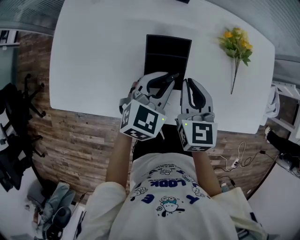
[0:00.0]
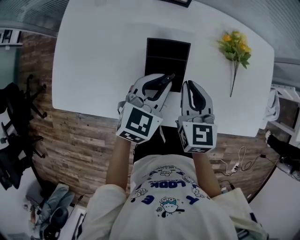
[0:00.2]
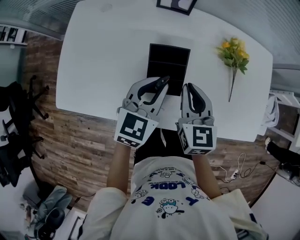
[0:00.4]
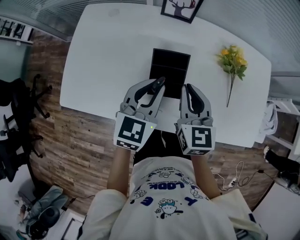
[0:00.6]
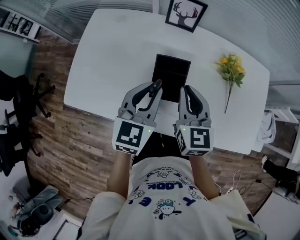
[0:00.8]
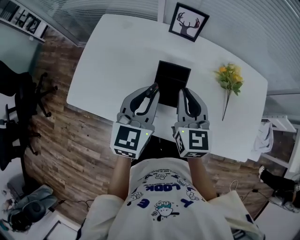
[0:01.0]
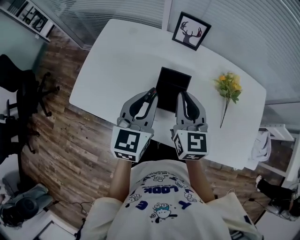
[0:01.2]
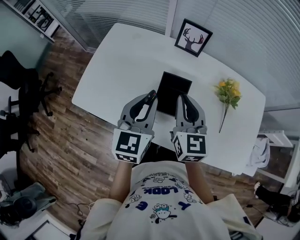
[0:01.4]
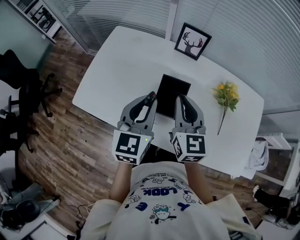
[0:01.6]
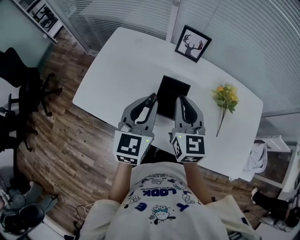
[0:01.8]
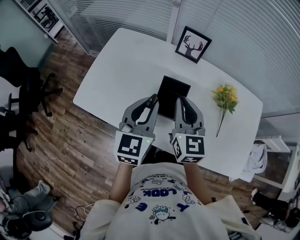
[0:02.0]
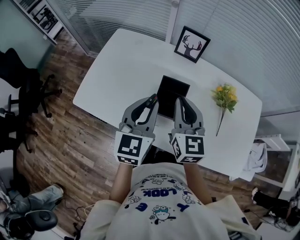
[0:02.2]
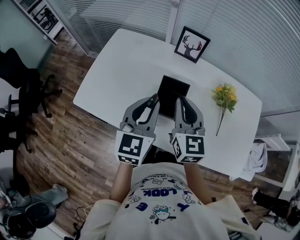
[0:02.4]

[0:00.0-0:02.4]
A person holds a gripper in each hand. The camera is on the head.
0.0 to 1.2 s: The right gripper moves upward, some 15 cm; the left gripper moves upward and to the left, about 15 cm, and rotates about 40 degrees.
1.2 to 2.4 s: The grippers stay close to where they were, moving slightly.

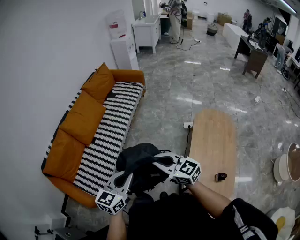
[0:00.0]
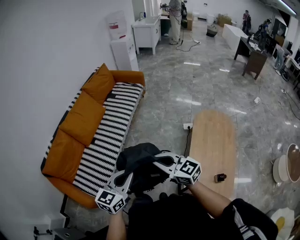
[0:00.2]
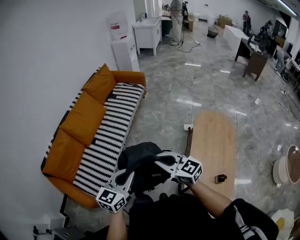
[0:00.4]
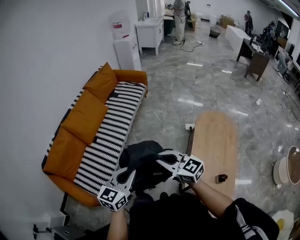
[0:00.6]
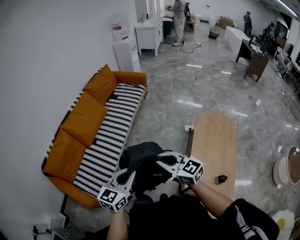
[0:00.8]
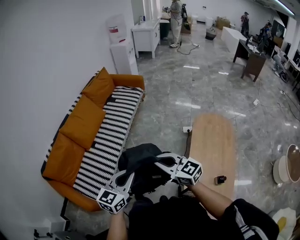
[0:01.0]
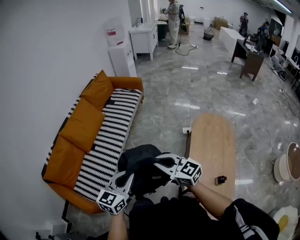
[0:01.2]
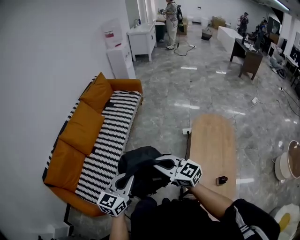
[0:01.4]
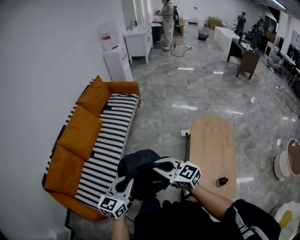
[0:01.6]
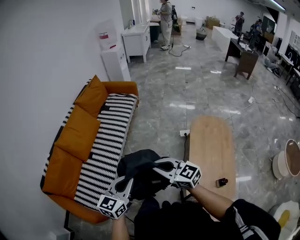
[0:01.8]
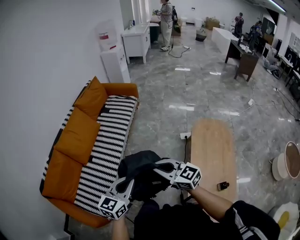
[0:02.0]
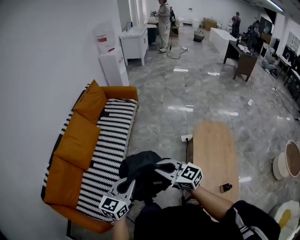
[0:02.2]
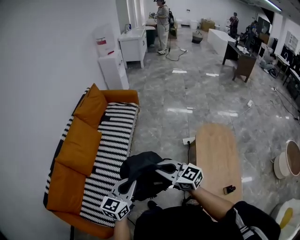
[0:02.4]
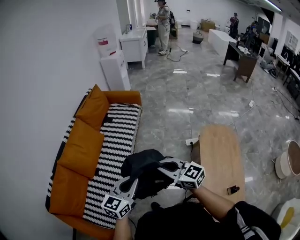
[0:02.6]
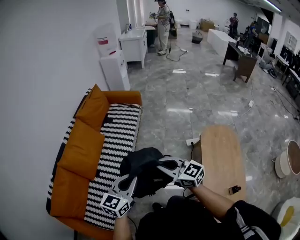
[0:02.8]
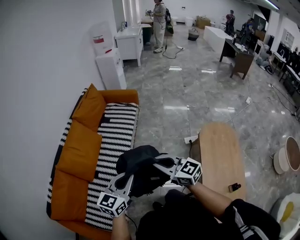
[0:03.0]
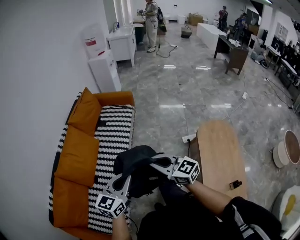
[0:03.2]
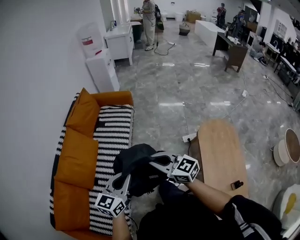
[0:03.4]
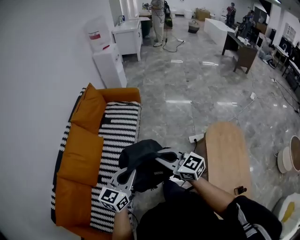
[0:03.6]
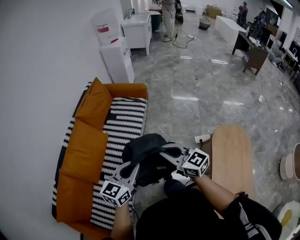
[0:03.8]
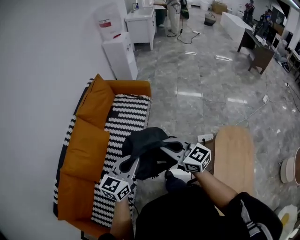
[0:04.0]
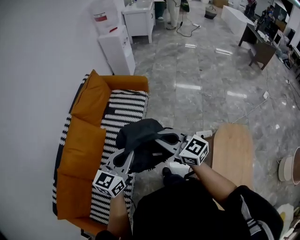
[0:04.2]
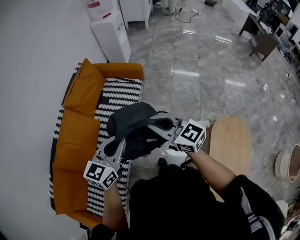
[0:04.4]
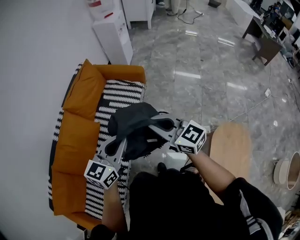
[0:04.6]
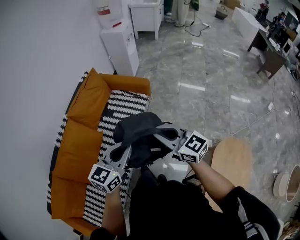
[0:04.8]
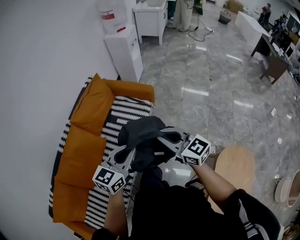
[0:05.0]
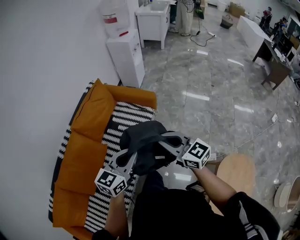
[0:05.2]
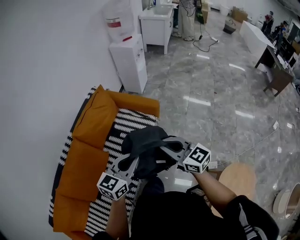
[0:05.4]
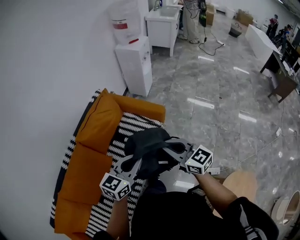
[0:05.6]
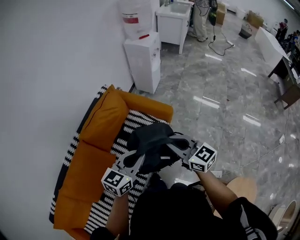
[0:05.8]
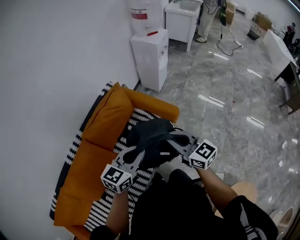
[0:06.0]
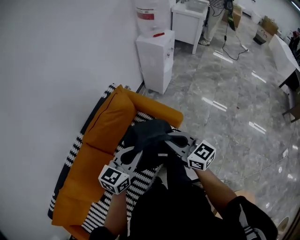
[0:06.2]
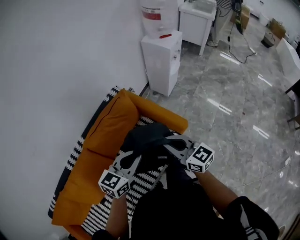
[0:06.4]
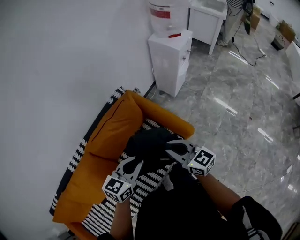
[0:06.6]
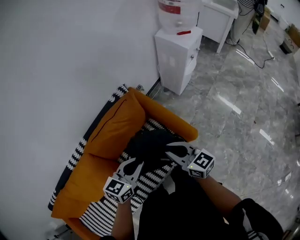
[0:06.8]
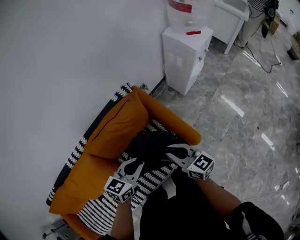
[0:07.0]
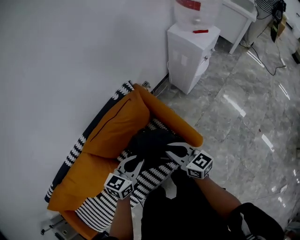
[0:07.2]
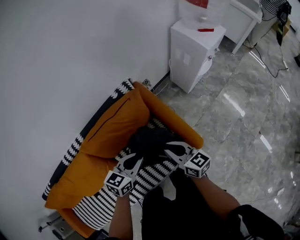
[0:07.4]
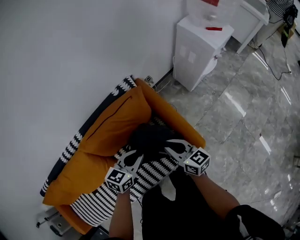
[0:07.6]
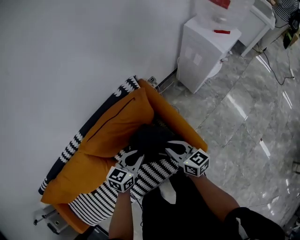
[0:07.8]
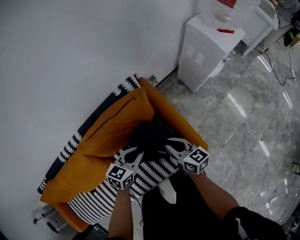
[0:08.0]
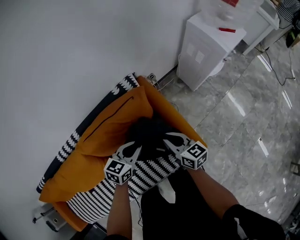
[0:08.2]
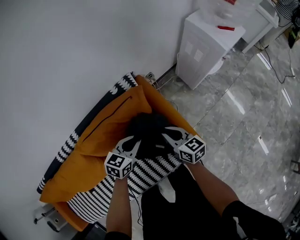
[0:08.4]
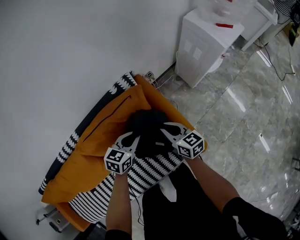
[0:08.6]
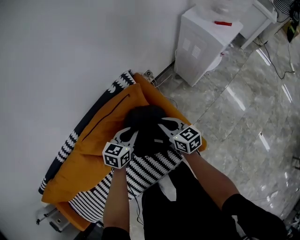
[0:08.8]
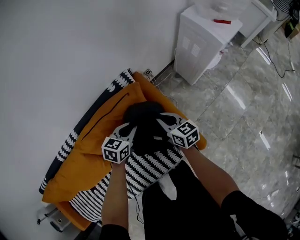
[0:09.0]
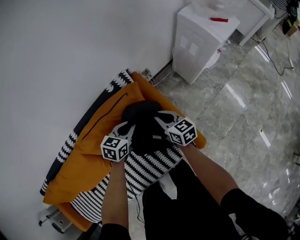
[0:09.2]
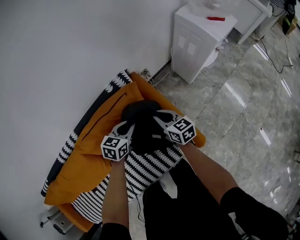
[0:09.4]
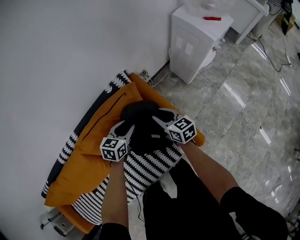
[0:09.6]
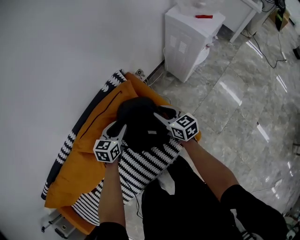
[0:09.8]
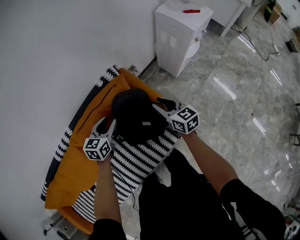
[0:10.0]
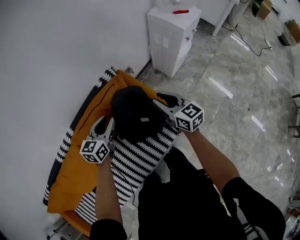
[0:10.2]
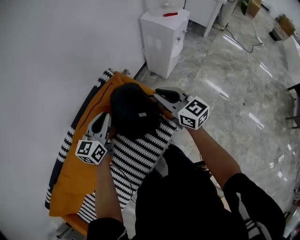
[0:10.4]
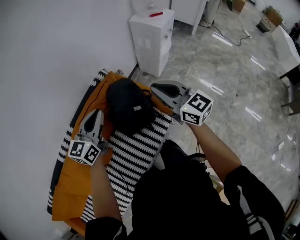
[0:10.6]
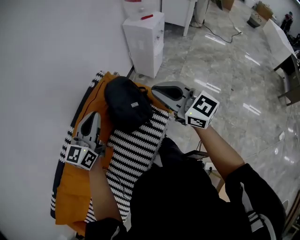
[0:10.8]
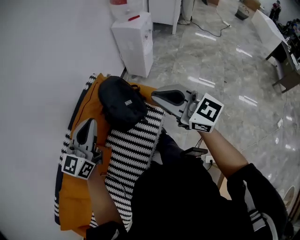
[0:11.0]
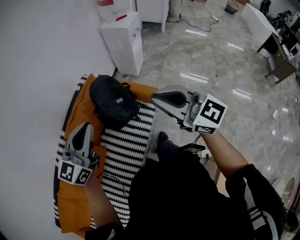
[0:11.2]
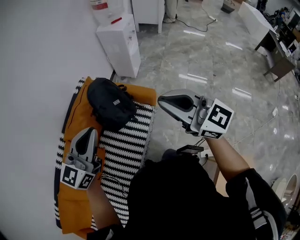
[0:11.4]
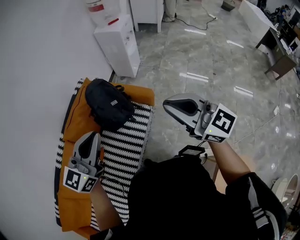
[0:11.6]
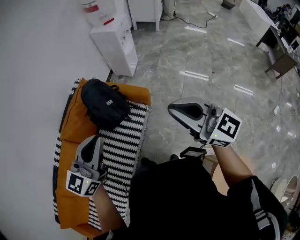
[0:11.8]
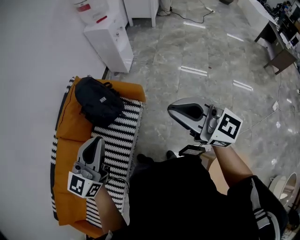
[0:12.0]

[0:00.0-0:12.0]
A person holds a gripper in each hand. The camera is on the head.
0.0 to 1.6 s: The grippers make only small movements.
1.6 to 3.0 s: The grippers both shift forward by some 20 cm.
3.0 to 4.4 s: The grippers both shift forward by some 30 cm.
4.4 to 6.0 s: The two grippers go some 35 cm forward.
6.0 to 7.6 s: The grippers both shift forward and downward by roughly 35 cm. The right gripper swivels roughly 30 degrees. The left gripper rotates approximately 30 degrees.
7.6 to 9.0 s: The two grippers go roughly 15 cm forward and downward.
9.0 to 10.4 s: Both grippers travel together upward and backward, some 25 cm. The left gripper turns by about 30 degrees, and opens and closes again. Meanwhile the right gripper turns by roughly 30 degrees.
10.4 to 12.0 s: The two grippers travel together, backward and to the right, approximately 40 cm. The two grippers go about 15 cm upward. The left gripper turns by roughly 30 degrees.

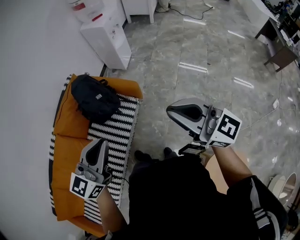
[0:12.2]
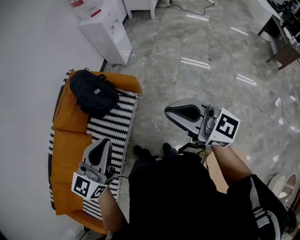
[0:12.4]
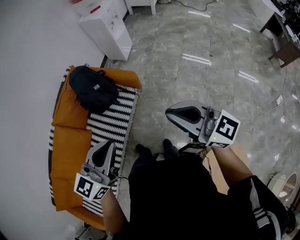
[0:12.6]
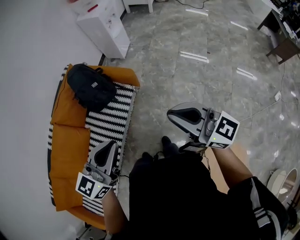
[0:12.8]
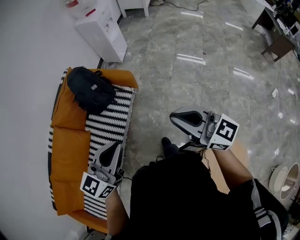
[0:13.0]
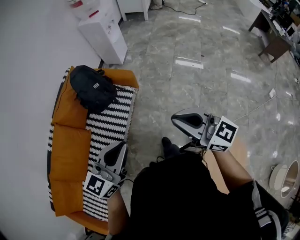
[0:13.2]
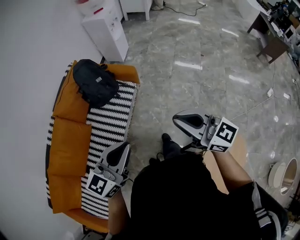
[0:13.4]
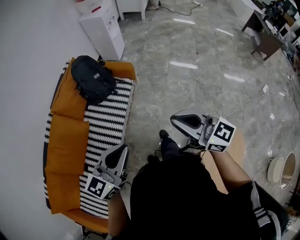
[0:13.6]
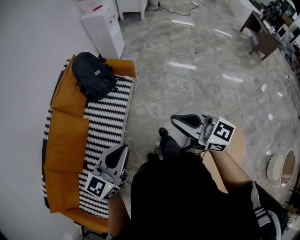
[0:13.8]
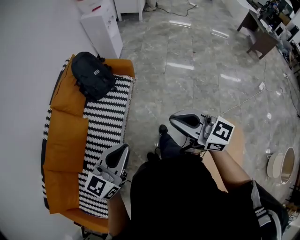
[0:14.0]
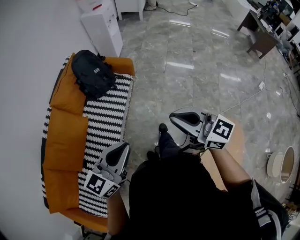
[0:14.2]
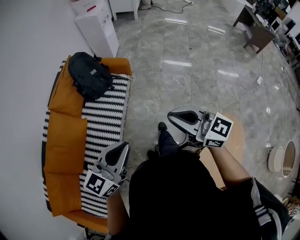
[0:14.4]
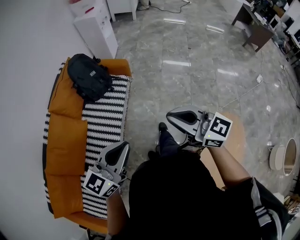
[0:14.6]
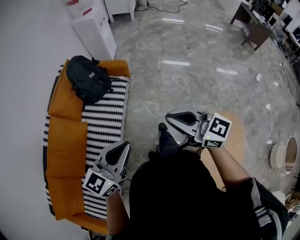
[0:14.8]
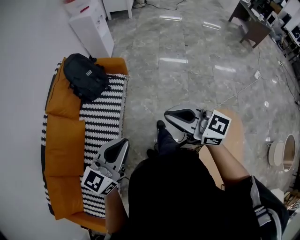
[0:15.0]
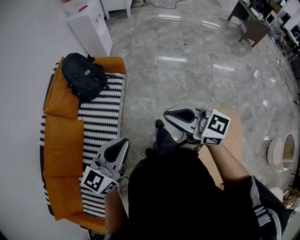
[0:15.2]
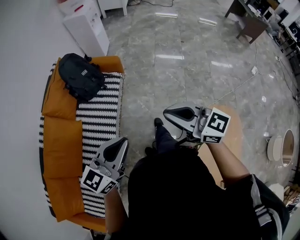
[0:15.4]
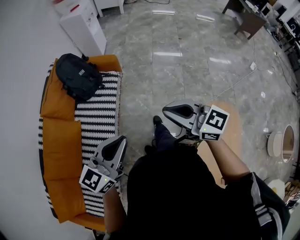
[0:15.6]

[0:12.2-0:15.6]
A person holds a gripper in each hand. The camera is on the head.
12.2 to 13.8 s: The grippers both shift backward by roughly 25 cm.
13.8 to 15.6 s: The grippers stay close to where they were, moving slightly.

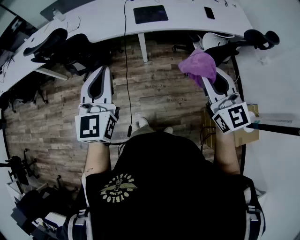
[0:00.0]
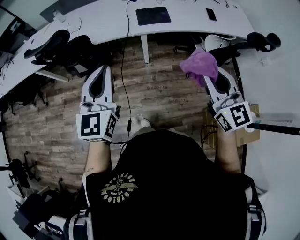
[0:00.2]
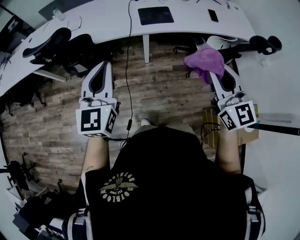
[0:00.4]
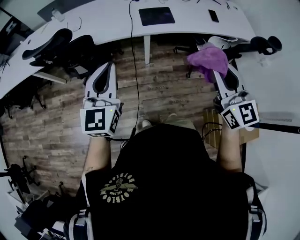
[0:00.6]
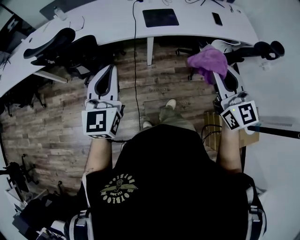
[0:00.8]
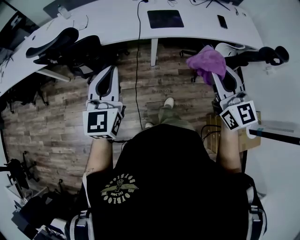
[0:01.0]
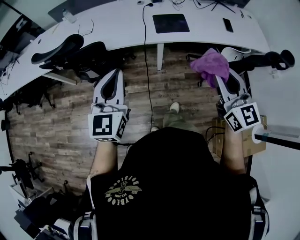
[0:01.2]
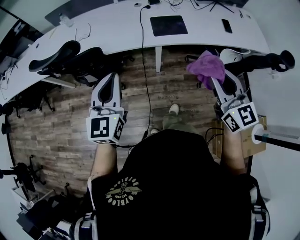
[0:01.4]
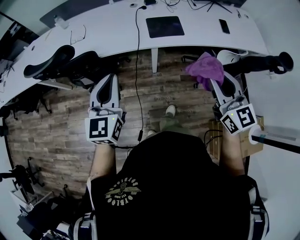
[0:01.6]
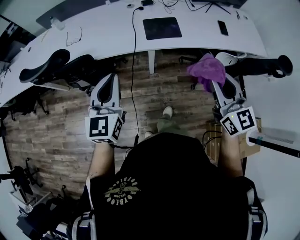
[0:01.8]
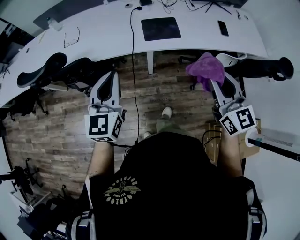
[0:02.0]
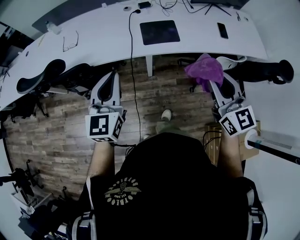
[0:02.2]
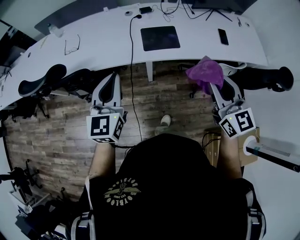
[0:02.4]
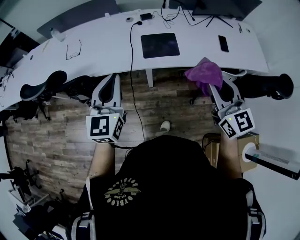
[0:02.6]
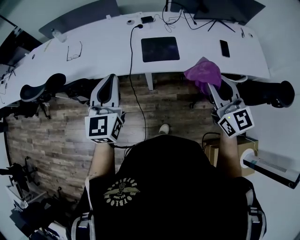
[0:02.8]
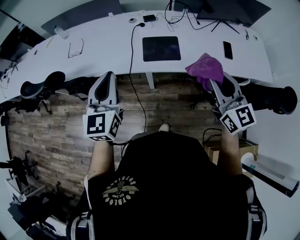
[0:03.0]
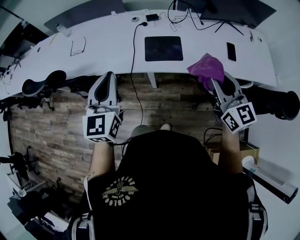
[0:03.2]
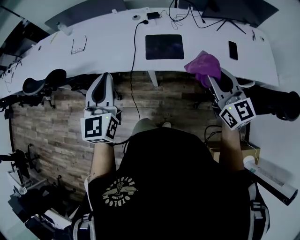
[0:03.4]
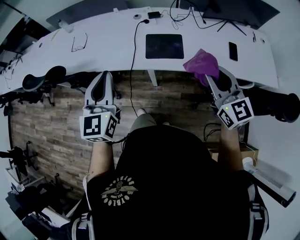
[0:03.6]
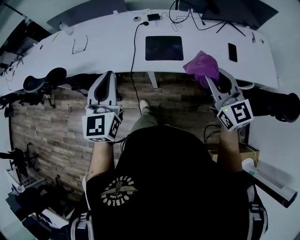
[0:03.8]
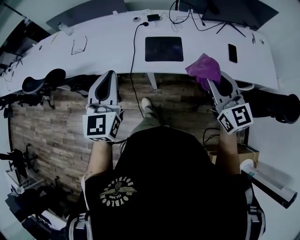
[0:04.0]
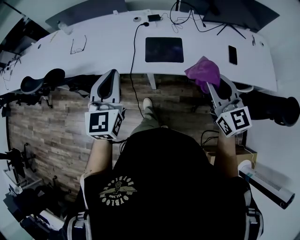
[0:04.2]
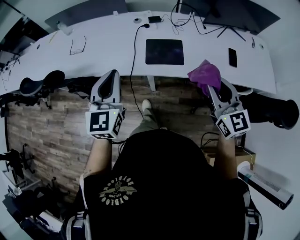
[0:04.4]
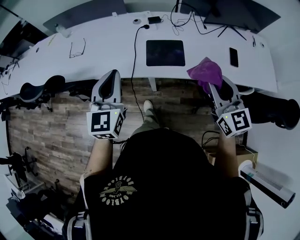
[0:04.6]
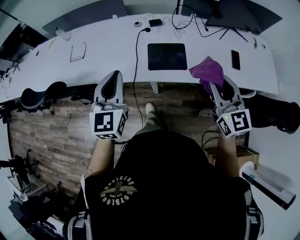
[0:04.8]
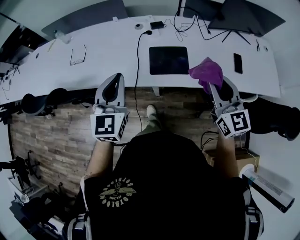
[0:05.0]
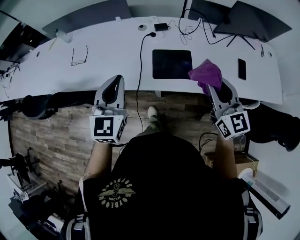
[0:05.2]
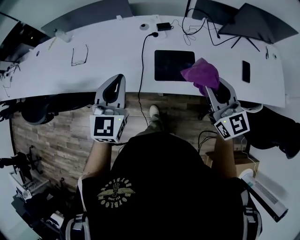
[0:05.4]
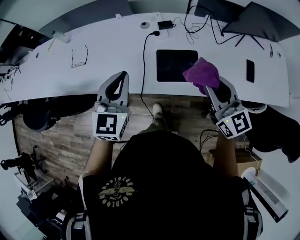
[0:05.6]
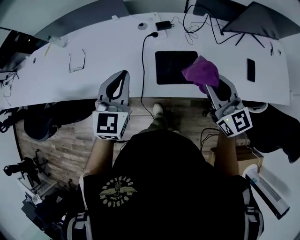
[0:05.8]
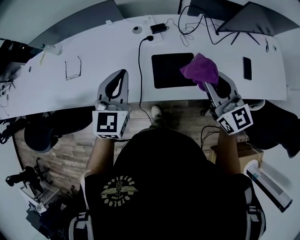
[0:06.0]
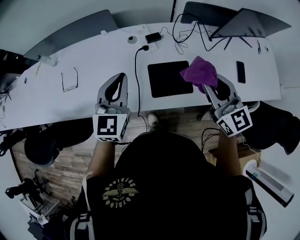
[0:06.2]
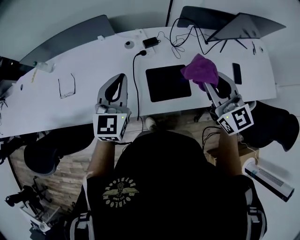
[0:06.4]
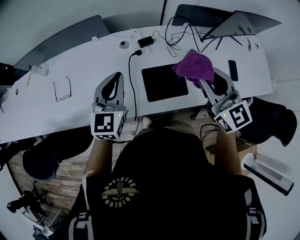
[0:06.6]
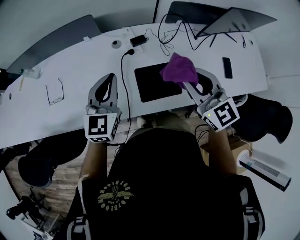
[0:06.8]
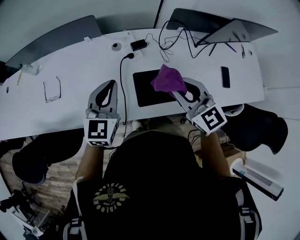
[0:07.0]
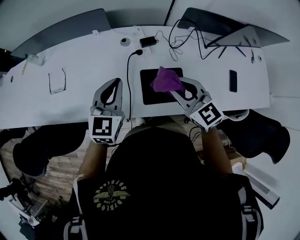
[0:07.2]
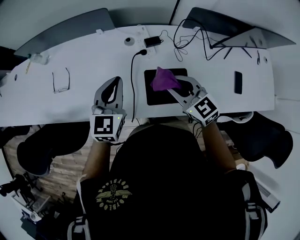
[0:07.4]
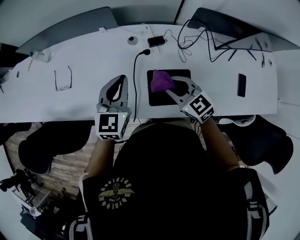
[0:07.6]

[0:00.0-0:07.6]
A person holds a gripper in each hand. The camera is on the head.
0.0 to 1.6 s: The right gripper is displaced forward by approximately 15 cm, while the left gripper moves forward and to the left, roughly 15 cm.
1.6 to 3.0 s: Both grippers move forward and to the right, roughly 20 cm.
3.0 to 4.6 s: The left gripper ends up roughly 5 cm from where it was. Meanwhile the right gripper moves roughly 5 cm.
4.6 to 6.0 s: Both grippers travel together forward, roughly 20 cm.
6.0 to 7.6 s: The left gripper heads forward and downward, covering approximately 10 cm, while the right gripper is displaced downward, forward and to the left by roughly 20 cm, and swivels about 30 degrees.
